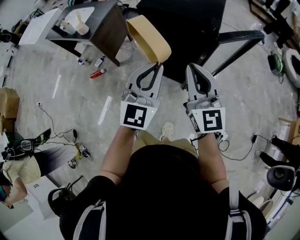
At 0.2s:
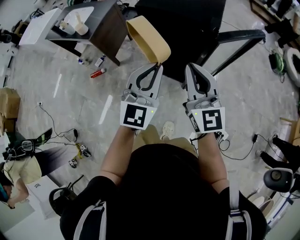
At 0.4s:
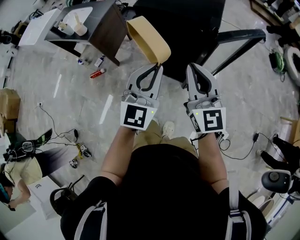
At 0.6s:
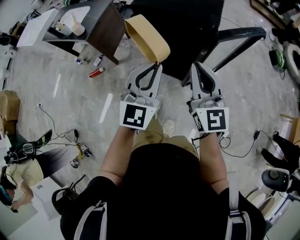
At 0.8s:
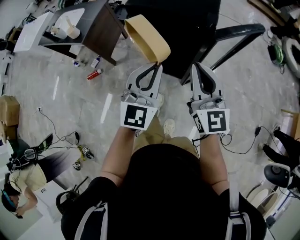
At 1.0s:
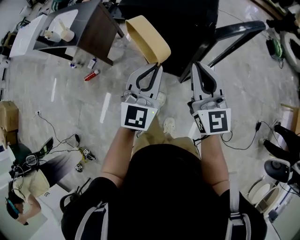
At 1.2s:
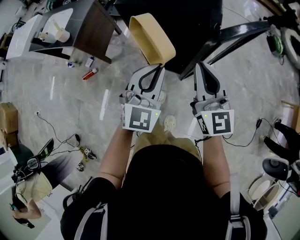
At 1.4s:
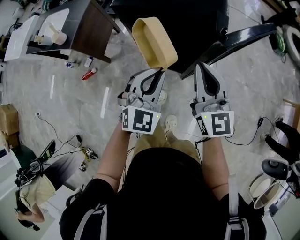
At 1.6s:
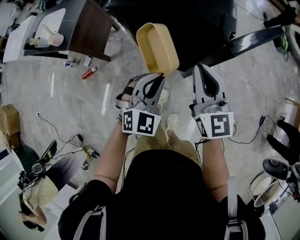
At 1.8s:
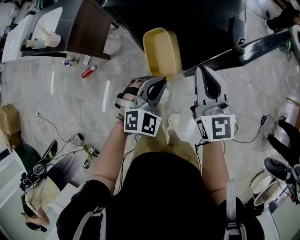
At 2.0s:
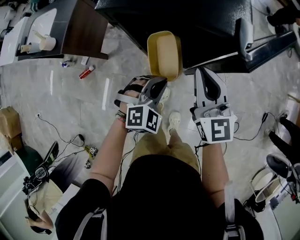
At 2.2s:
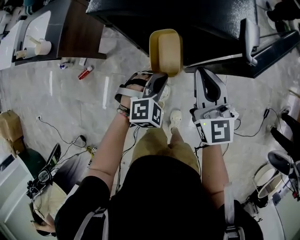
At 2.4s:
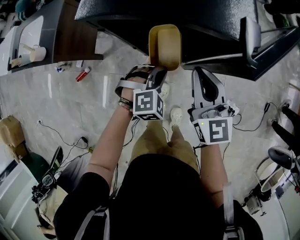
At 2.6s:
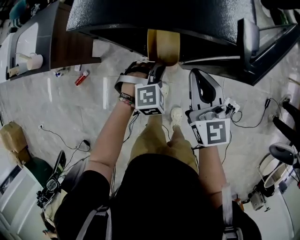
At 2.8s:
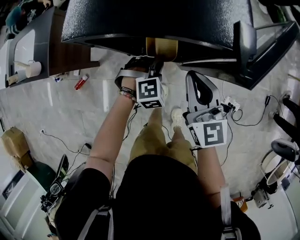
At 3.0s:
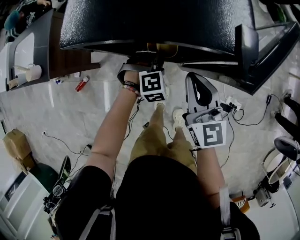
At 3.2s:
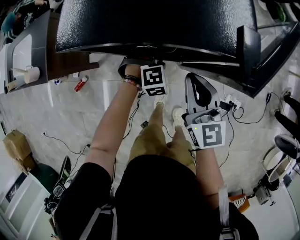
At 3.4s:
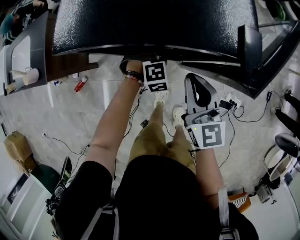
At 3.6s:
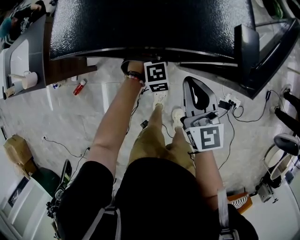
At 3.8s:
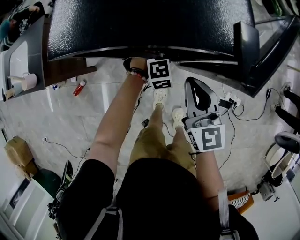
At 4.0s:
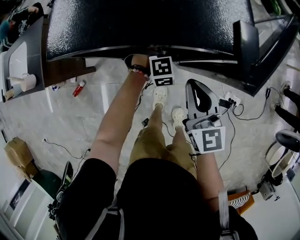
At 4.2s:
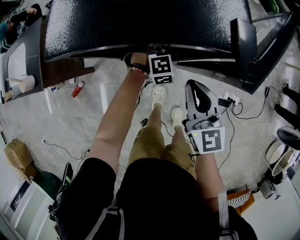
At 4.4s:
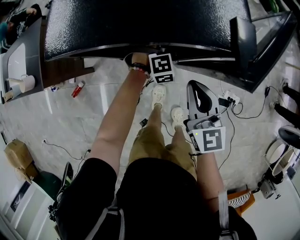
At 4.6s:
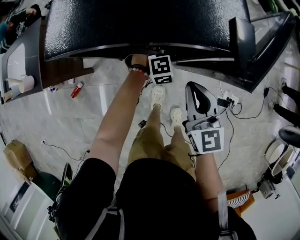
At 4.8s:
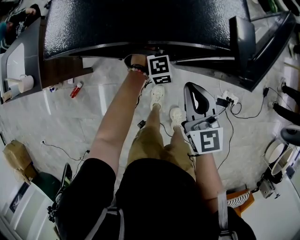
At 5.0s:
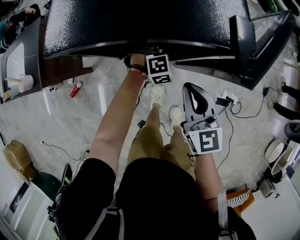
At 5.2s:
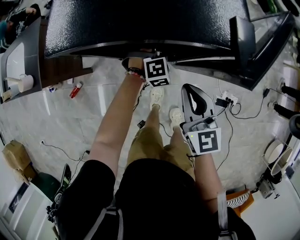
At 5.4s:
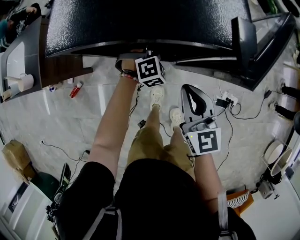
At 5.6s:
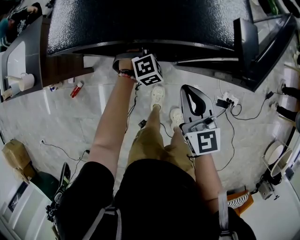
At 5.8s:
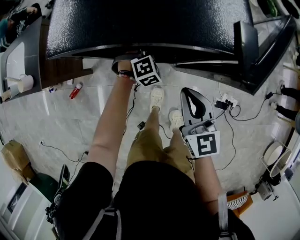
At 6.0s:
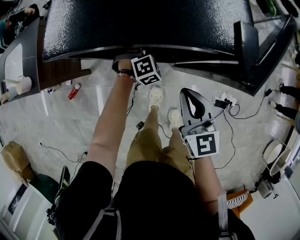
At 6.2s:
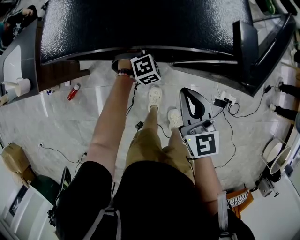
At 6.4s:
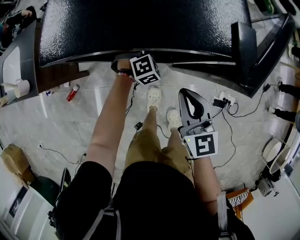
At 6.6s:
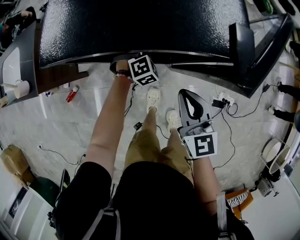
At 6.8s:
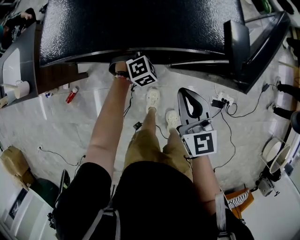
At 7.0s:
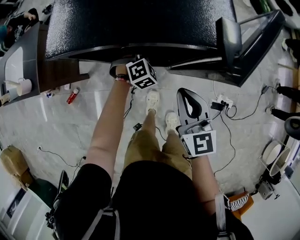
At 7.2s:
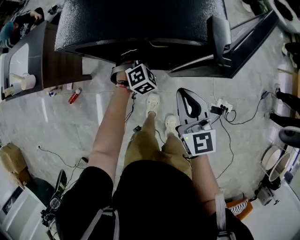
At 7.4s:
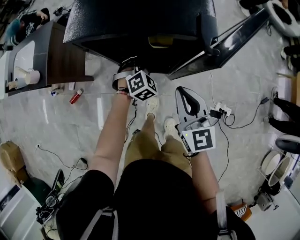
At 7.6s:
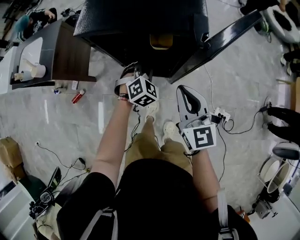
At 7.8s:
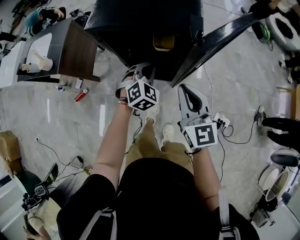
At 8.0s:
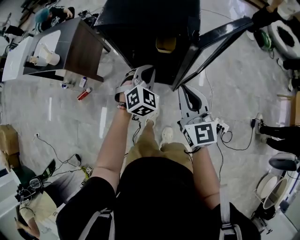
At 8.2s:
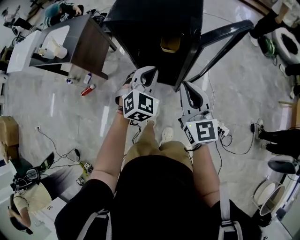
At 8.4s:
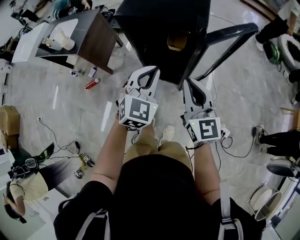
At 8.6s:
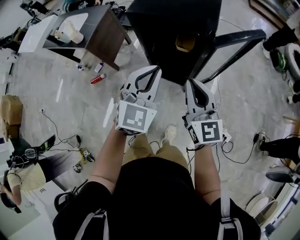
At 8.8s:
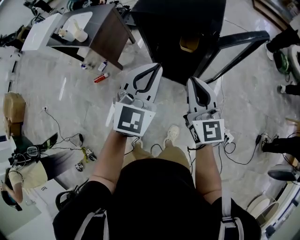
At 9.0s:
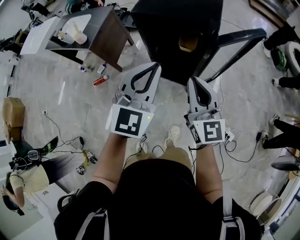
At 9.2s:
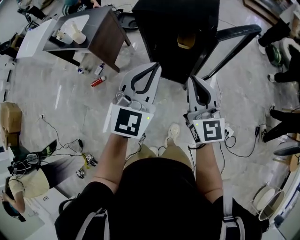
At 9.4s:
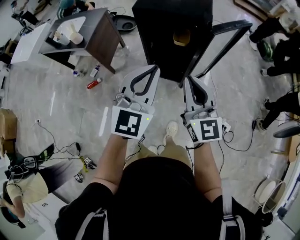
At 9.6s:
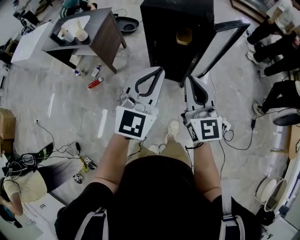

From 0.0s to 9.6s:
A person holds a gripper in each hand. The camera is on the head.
From 0.0s to 1.6s: The left gripper moves downward and forward, roughly 20 cm, and changes its angle by about 30 degrees. The right gripper shifts about 15 cm forward and downward.
From 1.6s to 3.2s: The left gripper is displaced downward and forward by approximately 30 cm, and tips its fingers downward by approximately 30 degrees; the right gripper shifts some 10 cm downward and forward.
From 3.2s to 4.8s: The left gripper moves approximately 5 cm.
From 4.8s to 6.4s: The left gripper changes place by roughly 5 cm, and opens, then closes again.
From 6.4s to 8.0s: The right gripper goes some 15 cm upward and backward, while the left gripper moves upward and backward, roughly 30 cm, and turns by roughly 30 degrees.
From 8.0s to 9.6s: The right gripper travels backward, upward and to the left by roughly 20 cm; the left gripper travels backward and upward by some 35 cm, and angles its fingers upward, by roughly 30 degrees.

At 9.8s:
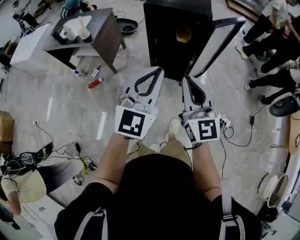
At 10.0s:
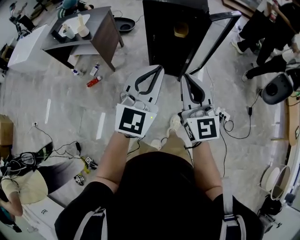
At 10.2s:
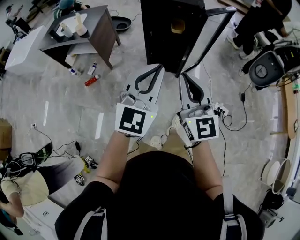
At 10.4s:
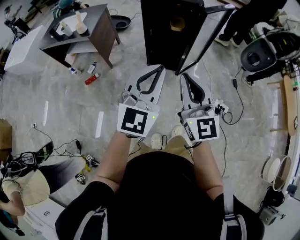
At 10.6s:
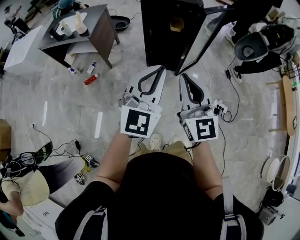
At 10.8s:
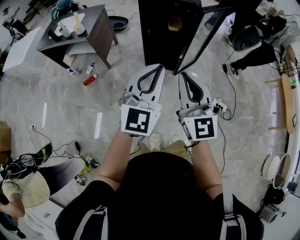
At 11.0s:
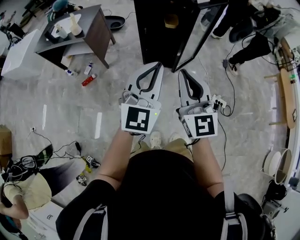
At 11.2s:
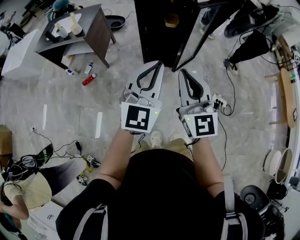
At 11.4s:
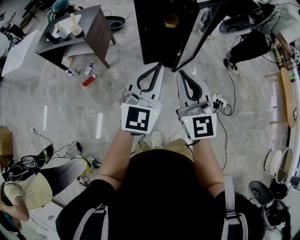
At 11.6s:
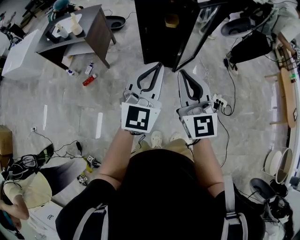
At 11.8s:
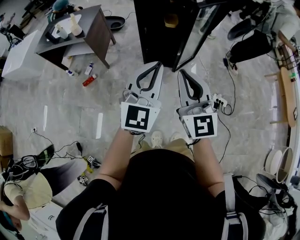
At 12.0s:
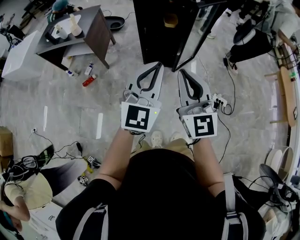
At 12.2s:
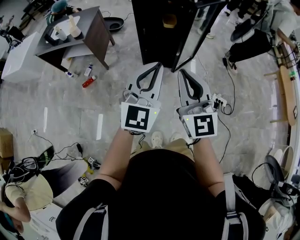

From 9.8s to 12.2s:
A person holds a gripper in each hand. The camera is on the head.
From 9.8s to 11.0s: The two grippers go about 10 cm backward.
From 11.0s to 12.2s: There are only small adjustments of the grippers.

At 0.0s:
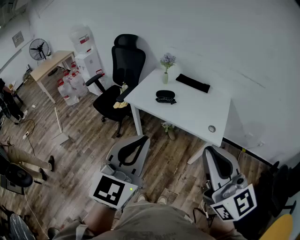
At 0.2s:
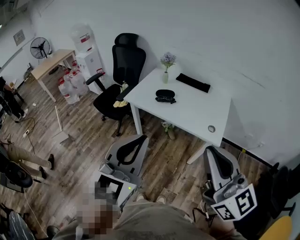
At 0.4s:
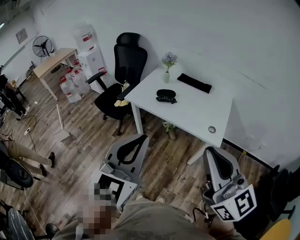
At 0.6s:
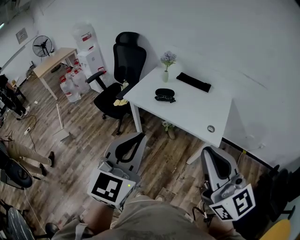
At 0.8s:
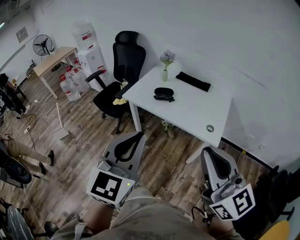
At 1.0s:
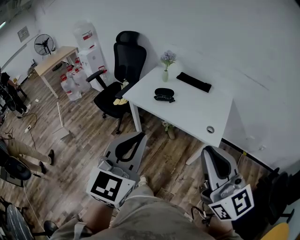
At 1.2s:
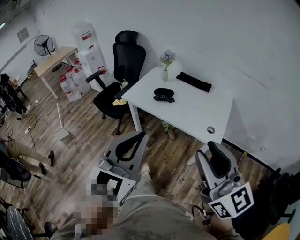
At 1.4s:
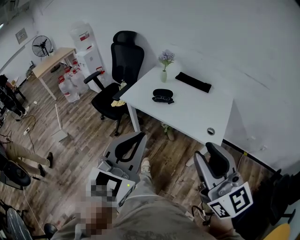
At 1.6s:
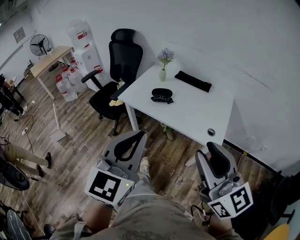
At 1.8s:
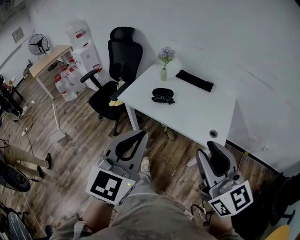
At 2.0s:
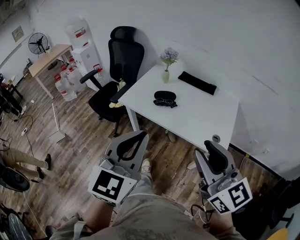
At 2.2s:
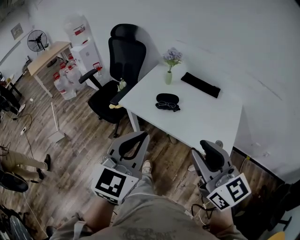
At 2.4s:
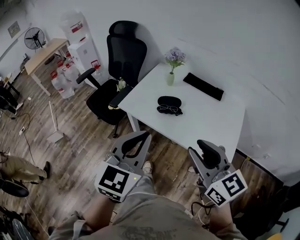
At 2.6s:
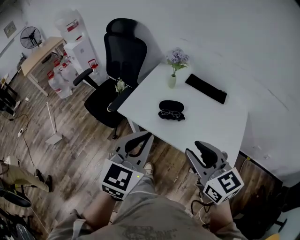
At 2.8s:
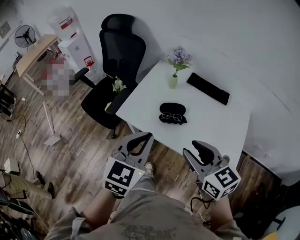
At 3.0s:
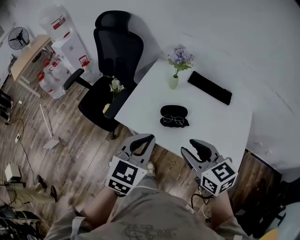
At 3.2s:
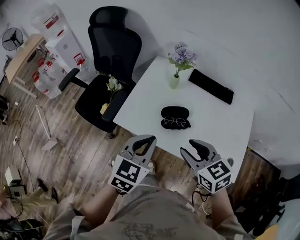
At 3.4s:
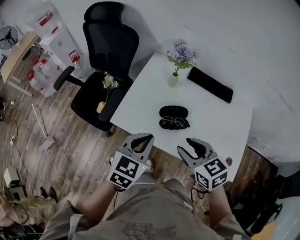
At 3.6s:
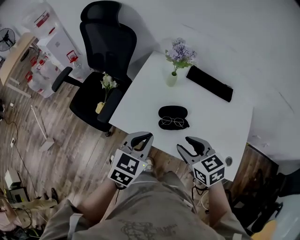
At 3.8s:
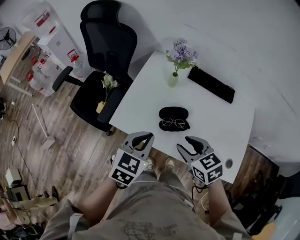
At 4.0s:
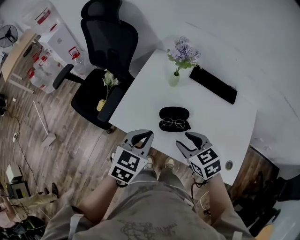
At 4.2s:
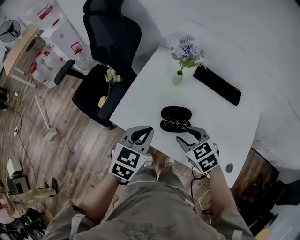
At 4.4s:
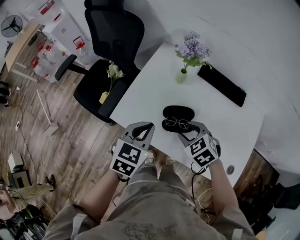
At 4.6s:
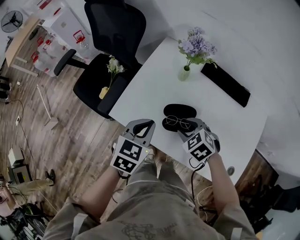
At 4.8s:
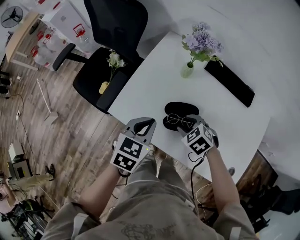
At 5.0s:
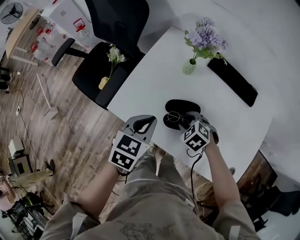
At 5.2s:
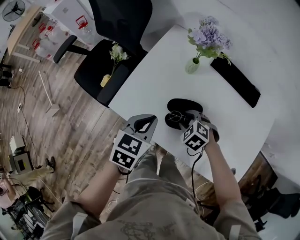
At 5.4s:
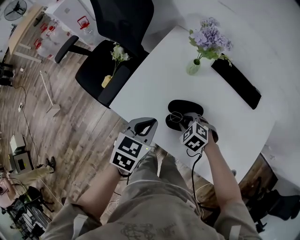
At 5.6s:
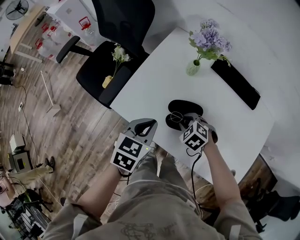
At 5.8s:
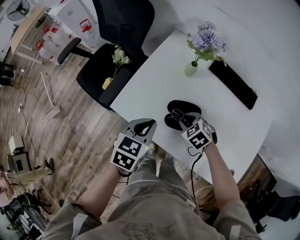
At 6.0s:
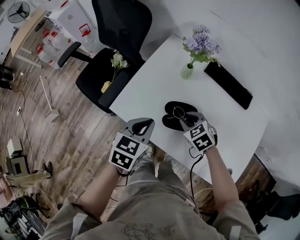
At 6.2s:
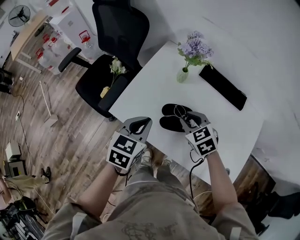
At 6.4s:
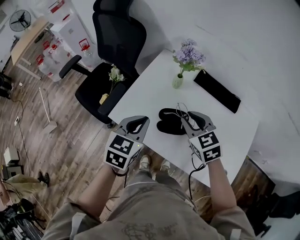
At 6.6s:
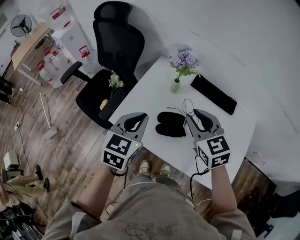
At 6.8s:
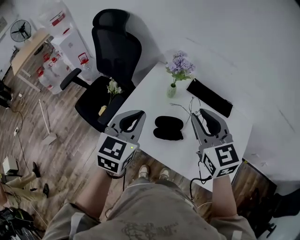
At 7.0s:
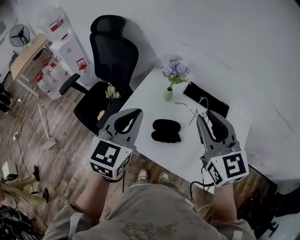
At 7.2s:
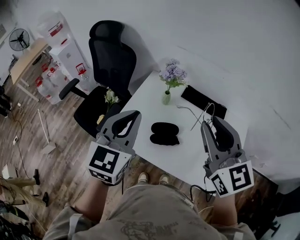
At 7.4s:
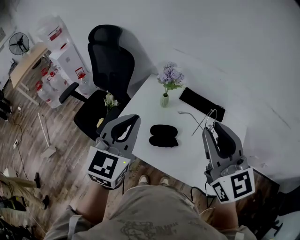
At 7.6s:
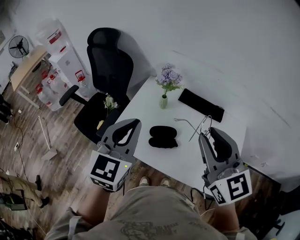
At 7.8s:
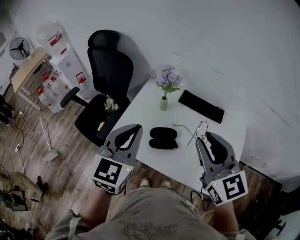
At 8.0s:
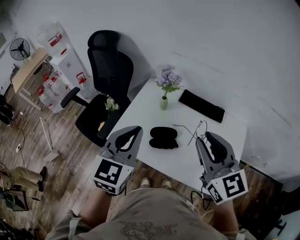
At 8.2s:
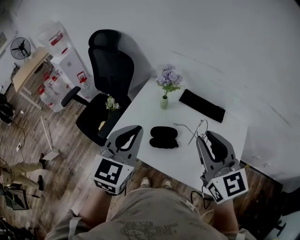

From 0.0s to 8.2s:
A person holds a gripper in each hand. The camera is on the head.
From 0.0s to 1.6s: The right gripper heads forward and downward, covering approximately 10 cm, and opens its fingers; the left gripper shifts some 5 cm forward.
From 1.6s to 3.2s: The grippers both shift forward and downward by roughly 40 cm. The right gripper tips its fingers downward by about 40 degrees, while the left gripper rotates about 30 degrees.
From 3.2s to 5.0s: The right gripper heads downward and forward, covering some 30 cm, and points its fingers approximately 30 degrees further downward; the left gripper travels downward and forward by roughly 15 cm, and rotates approximately 20 degrees.
From 5.0s to 6.6s: The right gripper moves upward, about 25 cm, points its fingers some 40 degrees further upward, and closes; the left gripper shifts about 15 cm upward.
From 6.6s to 8.2s: The left gripper moves upward, roughly 10 cm, while the right gripper travels upward, backward and to the right by some 15 cm.

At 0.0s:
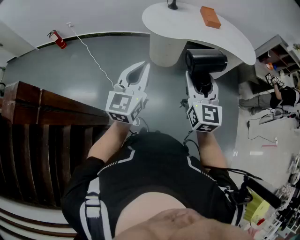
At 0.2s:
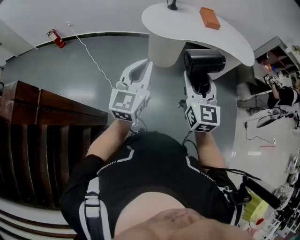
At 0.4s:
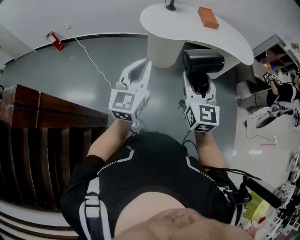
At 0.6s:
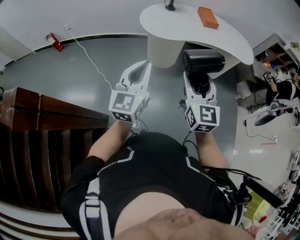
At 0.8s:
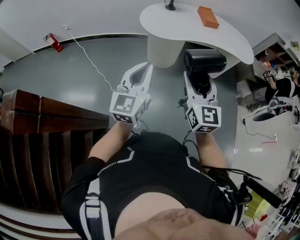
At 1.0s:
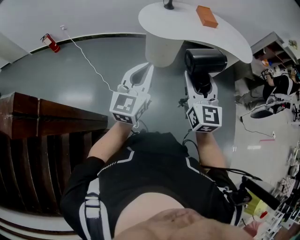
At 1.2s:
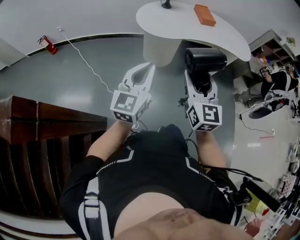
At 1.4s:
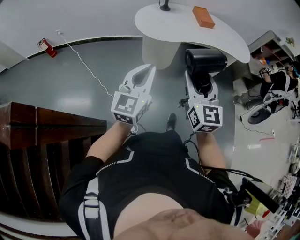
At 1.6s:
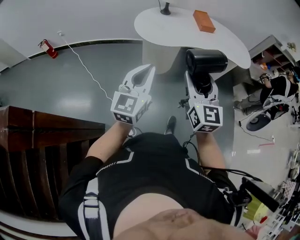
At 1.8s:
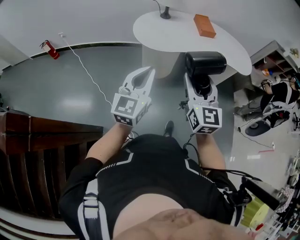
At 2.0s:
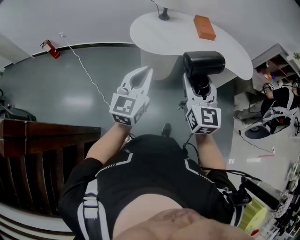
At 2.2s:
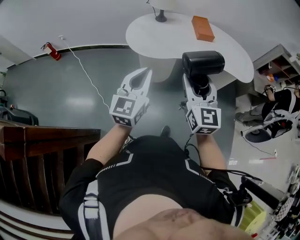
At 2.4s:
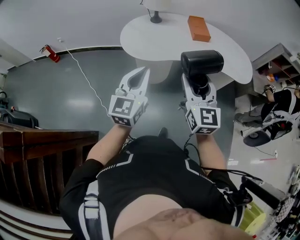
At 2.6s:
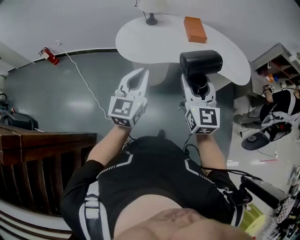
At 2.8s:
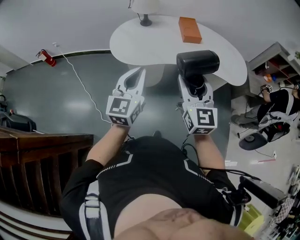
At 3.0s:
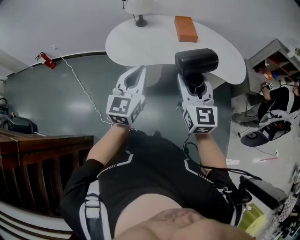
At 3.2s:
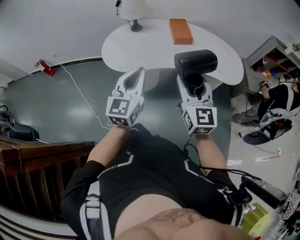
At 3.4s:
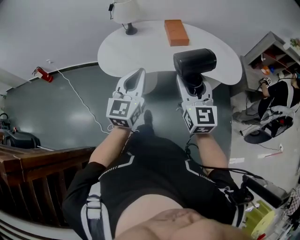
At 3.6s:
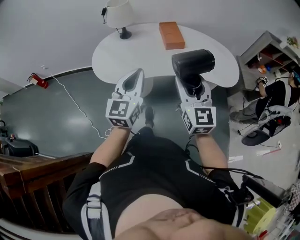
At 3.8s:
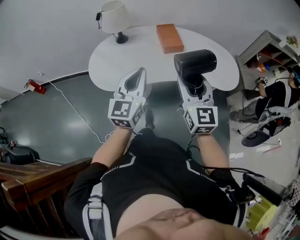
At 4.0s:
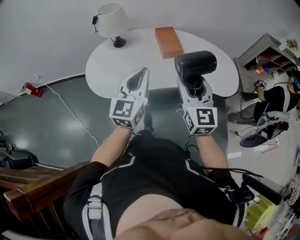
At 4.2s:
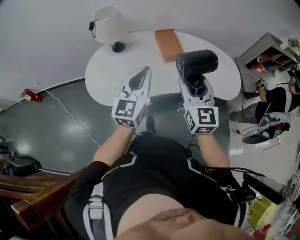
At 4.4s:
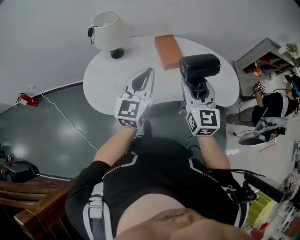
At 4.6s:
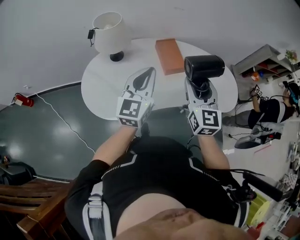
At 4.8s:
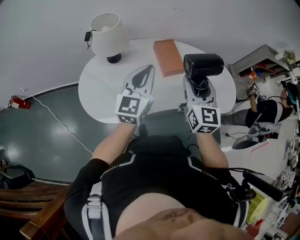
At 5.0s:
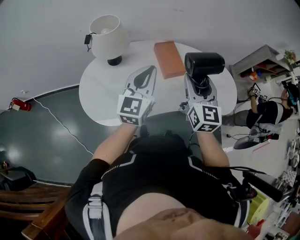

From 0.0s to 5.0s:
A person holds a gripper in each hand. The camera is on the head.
From 0.0s to 1.6s: Both grippers move forward, about 5 cm.
From 1.6s to 3.4s: Both grippers travel together to the right and forward, approximately 40 cm.
From 3.4s to 5.0s: Both grippers travel together forward, approximately 35 cm.
